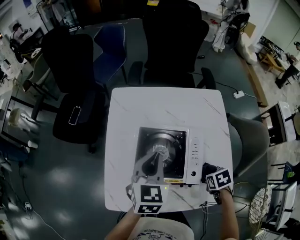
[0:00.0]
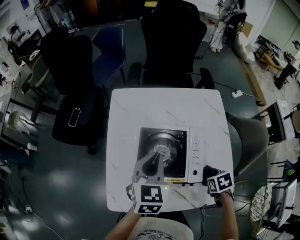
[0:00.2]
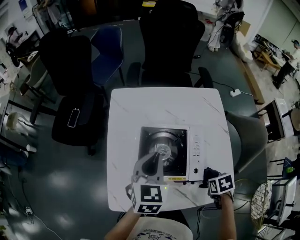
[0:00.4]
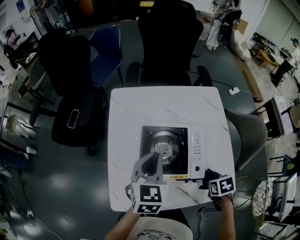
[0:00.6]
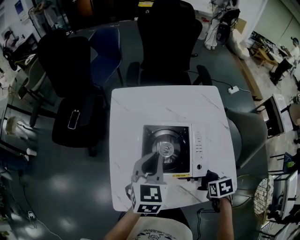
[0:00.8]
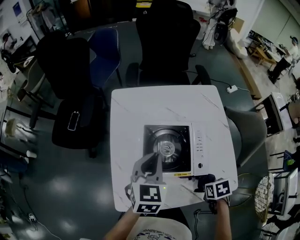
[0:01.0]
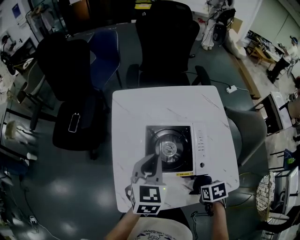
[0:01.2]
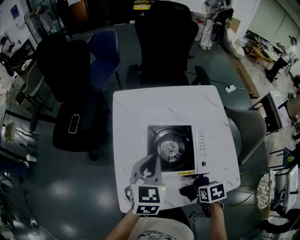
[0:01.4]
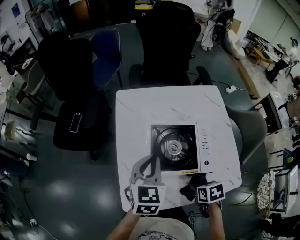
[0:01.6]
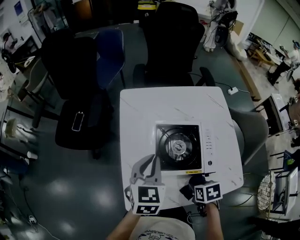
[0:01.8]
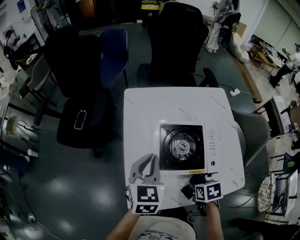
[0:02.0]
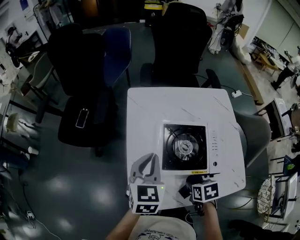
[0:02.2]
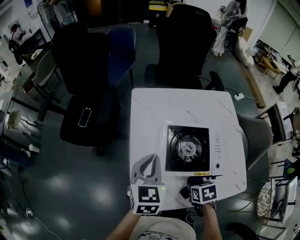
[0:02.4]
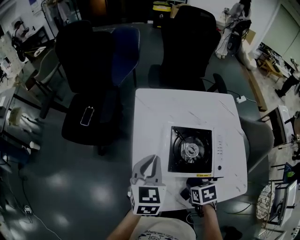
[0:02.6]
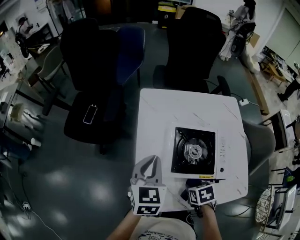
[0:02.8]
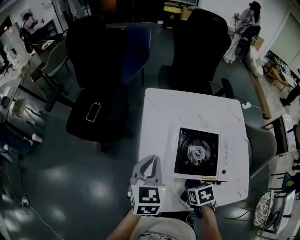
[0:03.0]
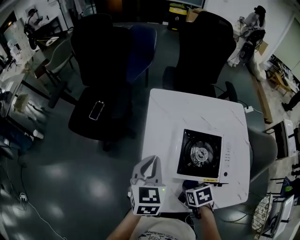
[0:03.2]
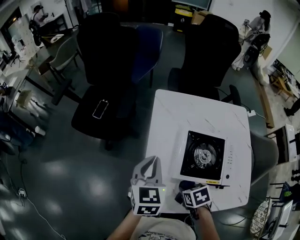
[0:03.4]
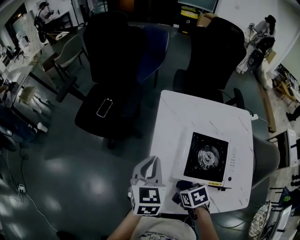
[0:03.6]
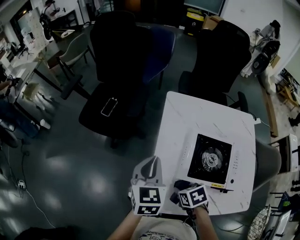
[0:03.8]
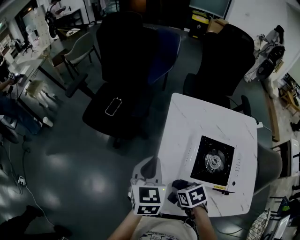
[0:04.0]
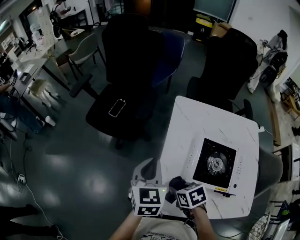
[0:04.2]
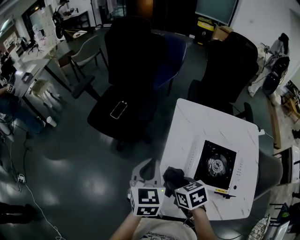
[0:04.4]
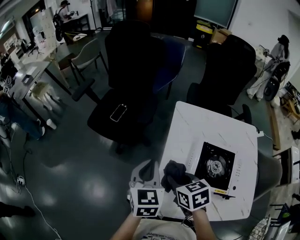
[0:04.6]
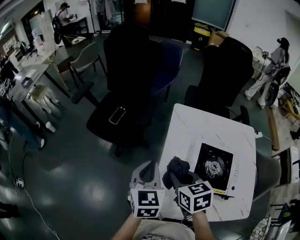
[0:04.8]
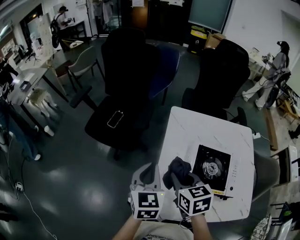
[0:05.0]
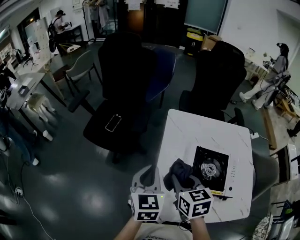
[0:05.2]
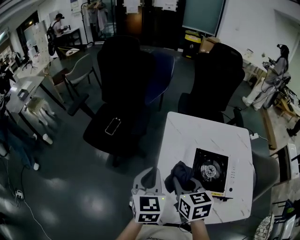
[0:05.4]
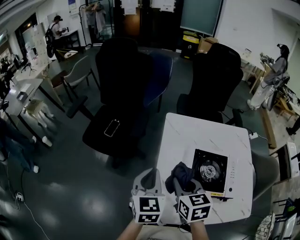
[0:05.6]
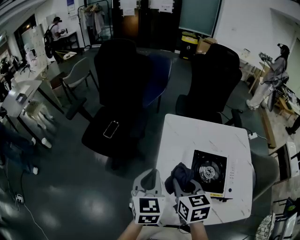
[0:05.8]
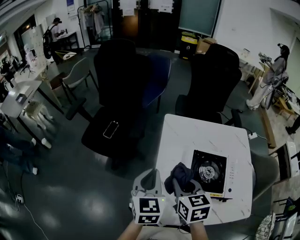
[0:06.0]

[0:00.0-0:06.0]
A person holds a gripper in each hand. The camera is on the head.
0.0 to 1.6 s: The left gripper ends up some 10 cm from where it was; the right gripper ends up some 15 cm from where it was.
1.6 to 3.0 s: The left gripper heads to the left, covering about 10 cm. The right gripper moves to the left and forward, roughly 10 cm.
3.0 to 4.4 s: The right gripper goes some 20 cm to the left, forward and upward, and swivels about 30 degrees. The left gripper travels to the left by some 10 cm.
4.4 to 6.0 s: The right gripper heads upward, covering roughly 10 cm, and rotates some 30 degrees.

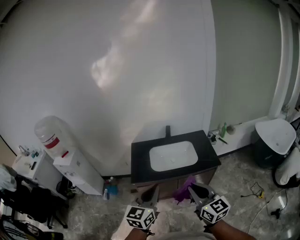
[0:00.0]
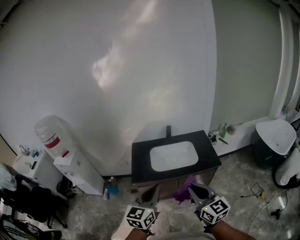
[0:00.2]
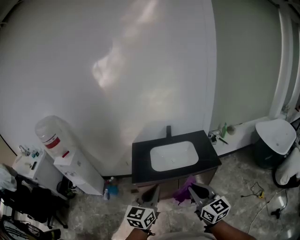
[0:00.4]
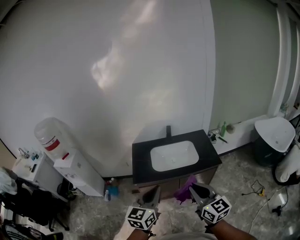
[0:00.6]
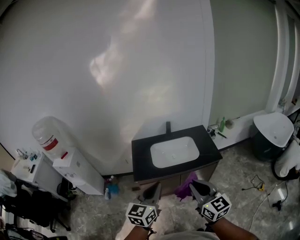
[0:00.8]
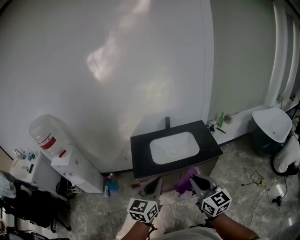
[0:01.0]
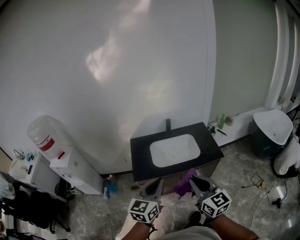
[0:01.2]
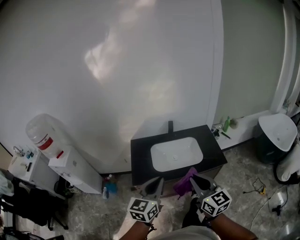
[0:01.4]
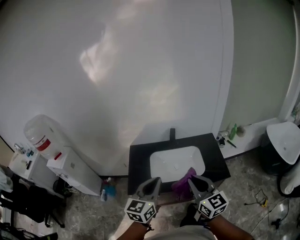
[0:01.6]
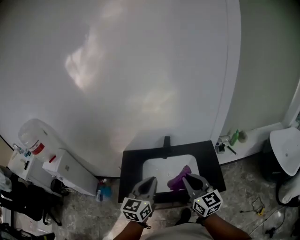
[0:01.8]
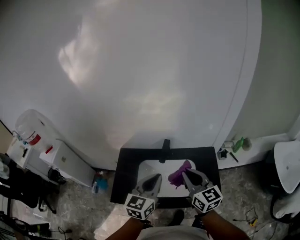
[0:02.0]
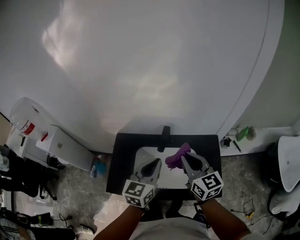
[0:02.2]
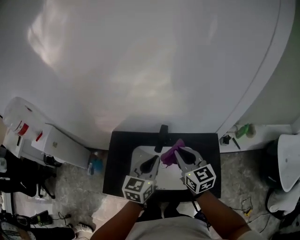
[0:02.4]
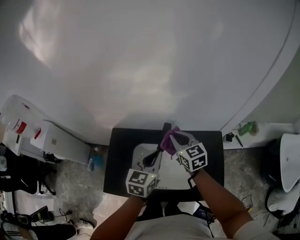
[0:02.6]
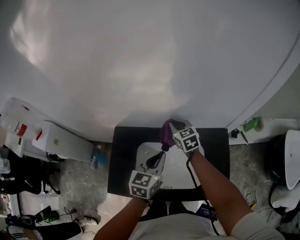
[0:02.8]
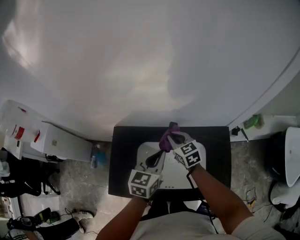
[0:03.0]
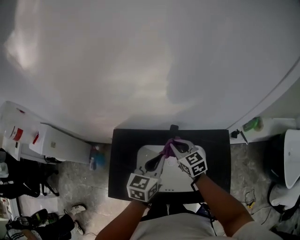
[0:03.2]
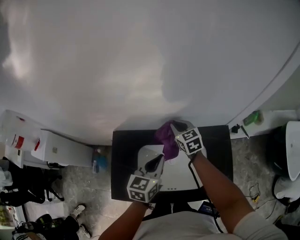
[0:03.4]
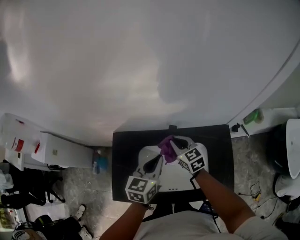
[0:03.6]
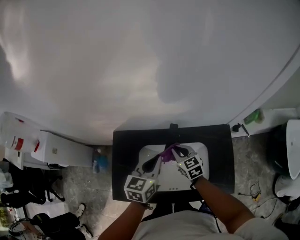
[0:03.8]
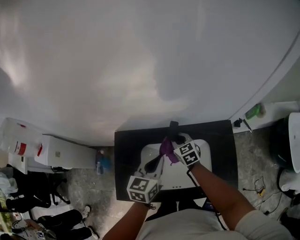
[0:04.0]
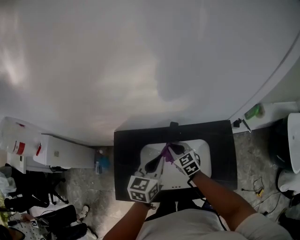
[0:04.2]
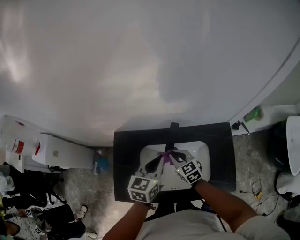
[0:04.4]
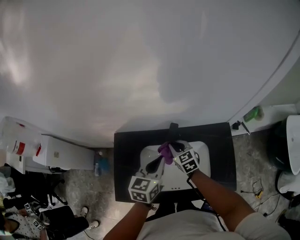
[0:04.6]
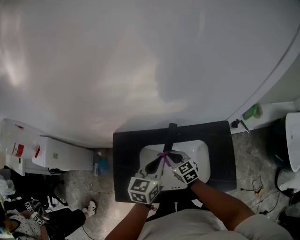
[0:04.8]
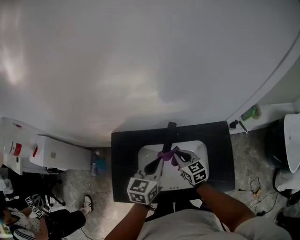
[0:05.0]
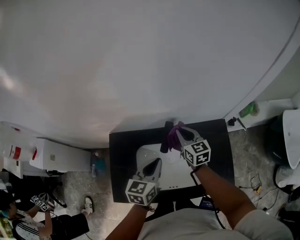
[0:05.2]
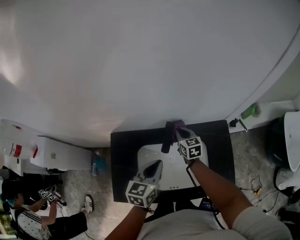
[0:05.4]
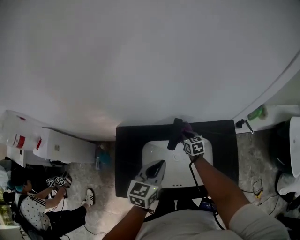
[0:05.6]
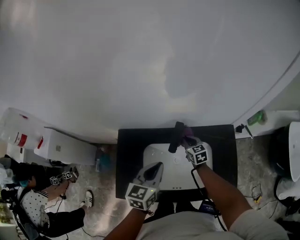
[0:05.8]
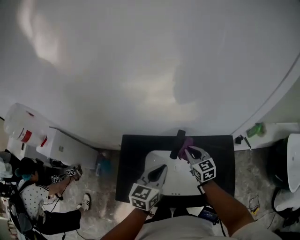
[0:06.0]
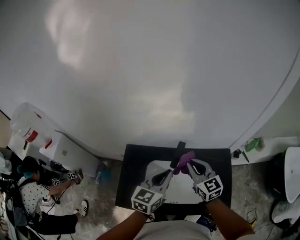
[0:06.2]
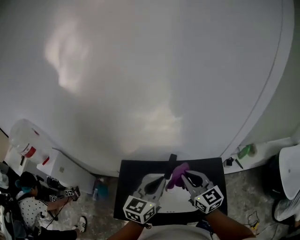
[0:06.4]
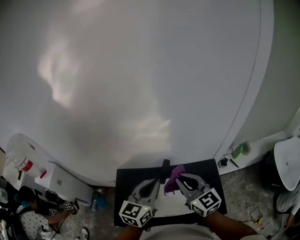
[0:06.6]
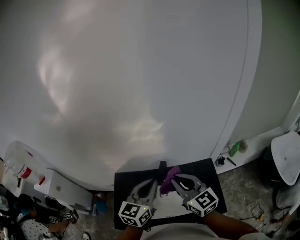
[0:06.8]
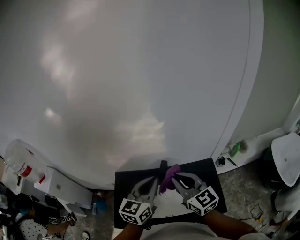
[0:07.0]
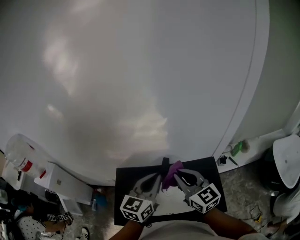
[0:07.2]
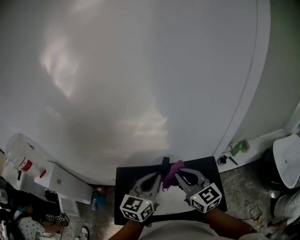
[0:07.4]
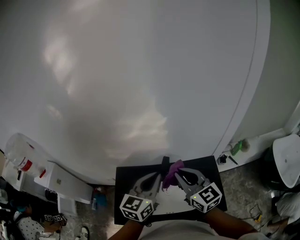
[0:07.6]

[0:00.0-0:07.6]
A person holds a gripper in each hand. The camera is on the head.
0.0 to 1.6 s: The two grippers go about 20 cm forward.
1.6 to 3.0 s: Both grippers travel together forward and downward, roughly 50 cm. The left gripper rotates approximately 20 degrees; the right gripper turns by approximately 30 degrees.
3.0 to 4.6 s: The right gripper goes forward and backward, roughly 15 cm each way, reversing 4 times.
4.6 to 6.0 s: The right gripper goes up and down, some 15 cm each way, reversing 2 times, while the left gripper shifts by roughly 5 cm.
6.0 to 7.6 s: The right gripper travels upward and backward by about 30 cm, while the left gripper is displaced upward by approximately 15 cm.

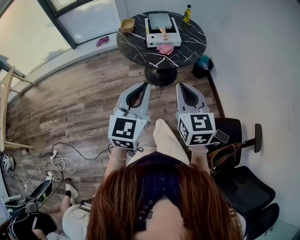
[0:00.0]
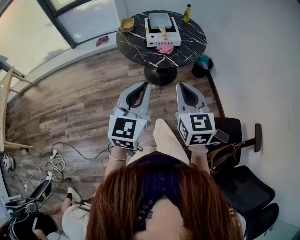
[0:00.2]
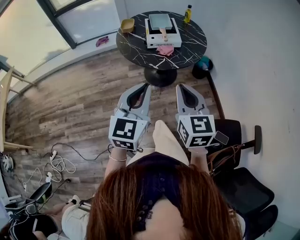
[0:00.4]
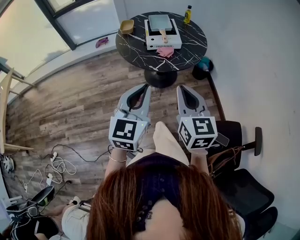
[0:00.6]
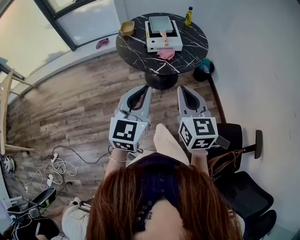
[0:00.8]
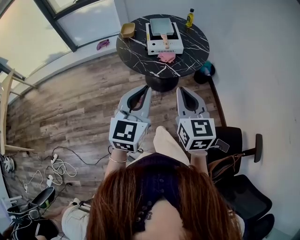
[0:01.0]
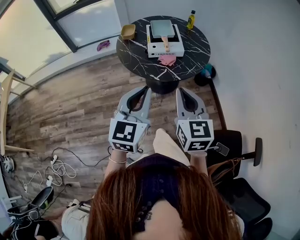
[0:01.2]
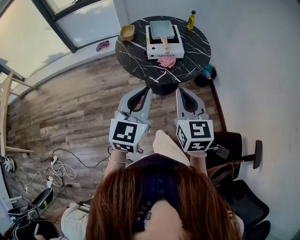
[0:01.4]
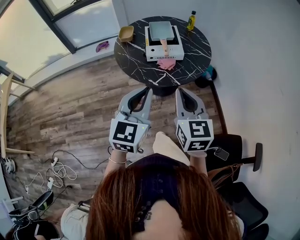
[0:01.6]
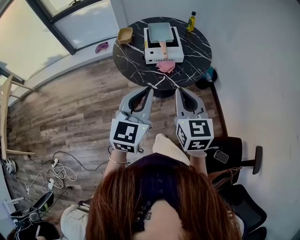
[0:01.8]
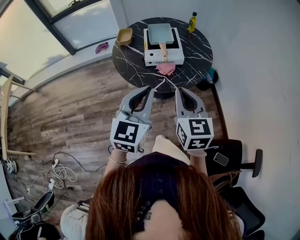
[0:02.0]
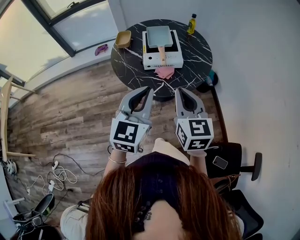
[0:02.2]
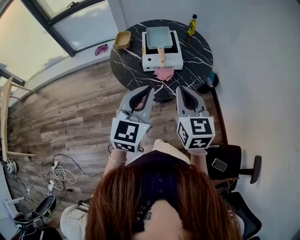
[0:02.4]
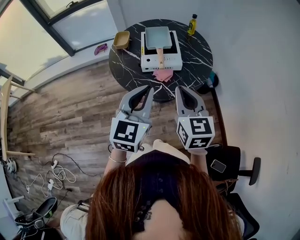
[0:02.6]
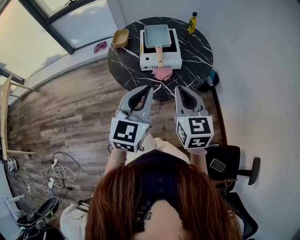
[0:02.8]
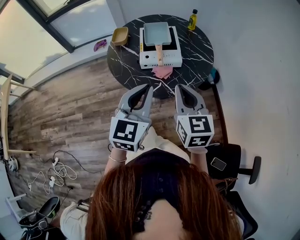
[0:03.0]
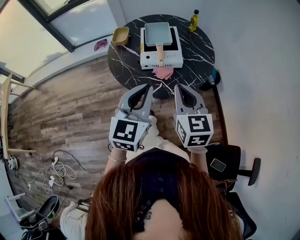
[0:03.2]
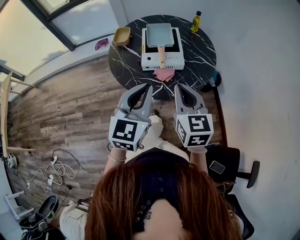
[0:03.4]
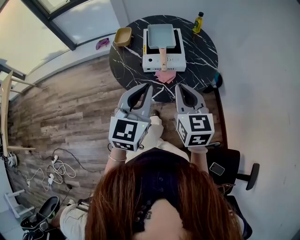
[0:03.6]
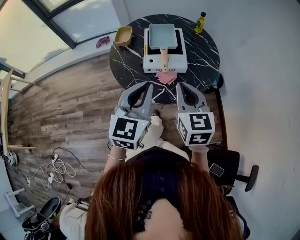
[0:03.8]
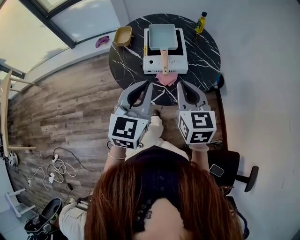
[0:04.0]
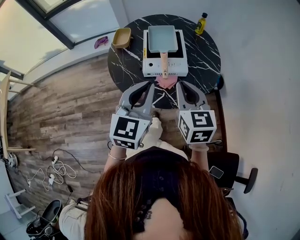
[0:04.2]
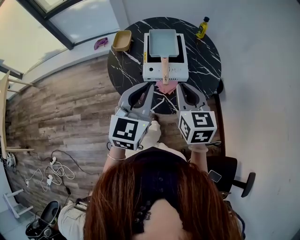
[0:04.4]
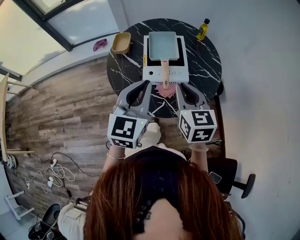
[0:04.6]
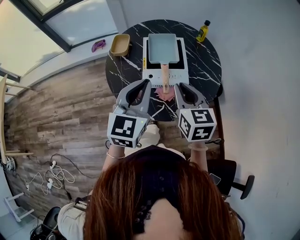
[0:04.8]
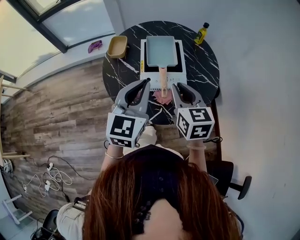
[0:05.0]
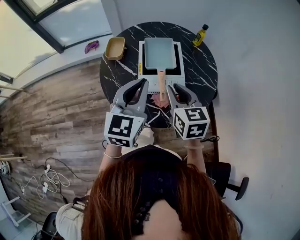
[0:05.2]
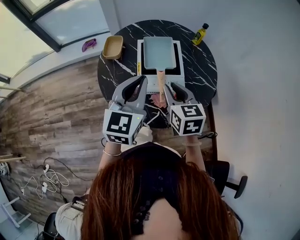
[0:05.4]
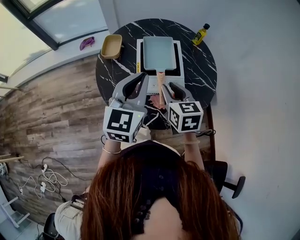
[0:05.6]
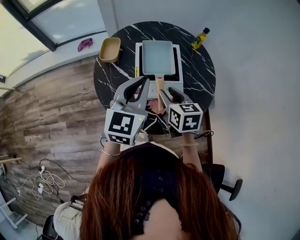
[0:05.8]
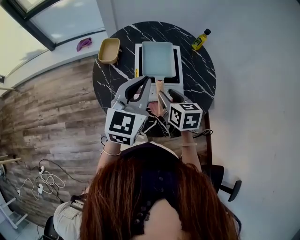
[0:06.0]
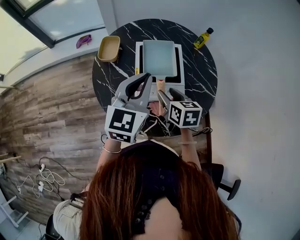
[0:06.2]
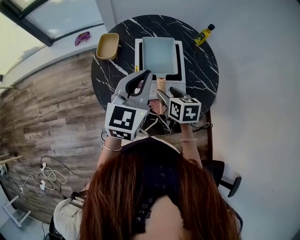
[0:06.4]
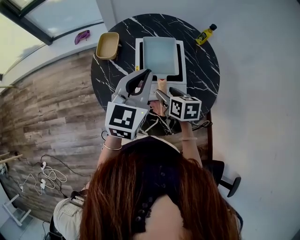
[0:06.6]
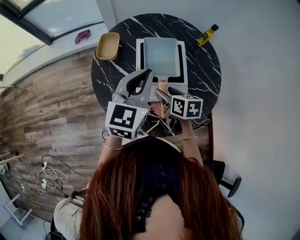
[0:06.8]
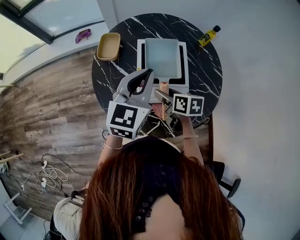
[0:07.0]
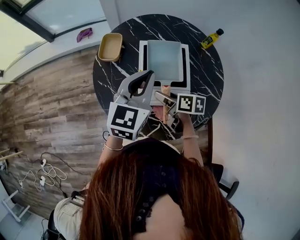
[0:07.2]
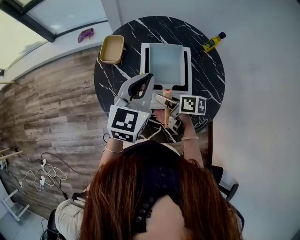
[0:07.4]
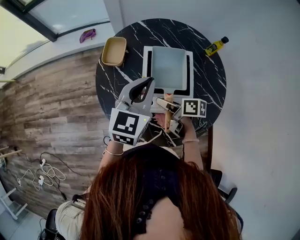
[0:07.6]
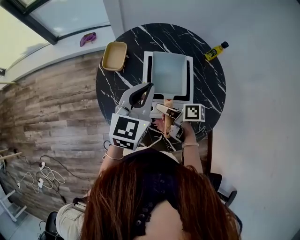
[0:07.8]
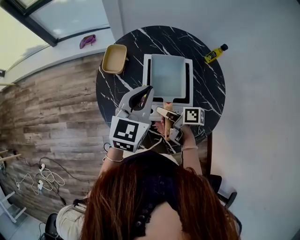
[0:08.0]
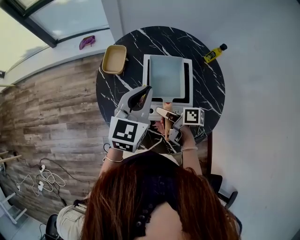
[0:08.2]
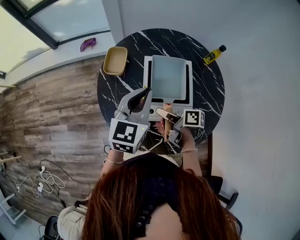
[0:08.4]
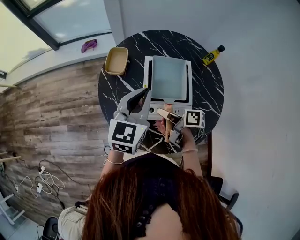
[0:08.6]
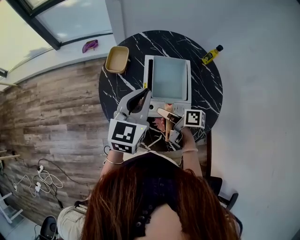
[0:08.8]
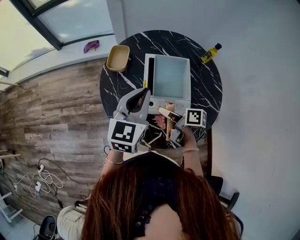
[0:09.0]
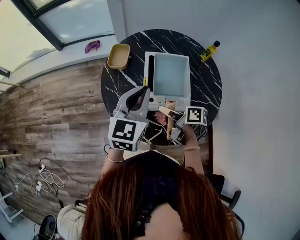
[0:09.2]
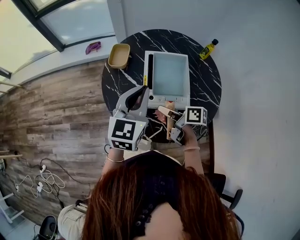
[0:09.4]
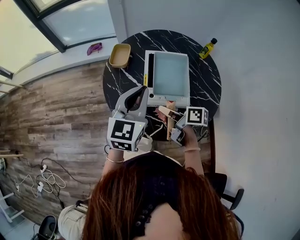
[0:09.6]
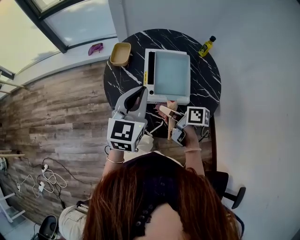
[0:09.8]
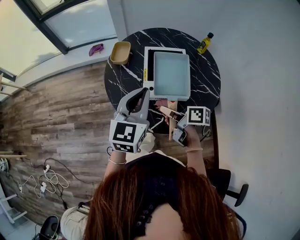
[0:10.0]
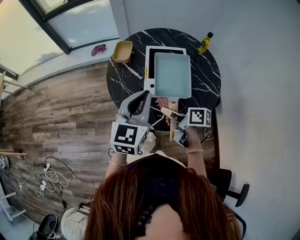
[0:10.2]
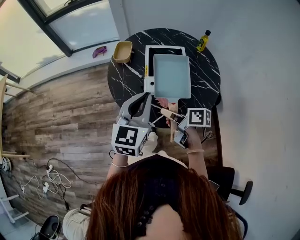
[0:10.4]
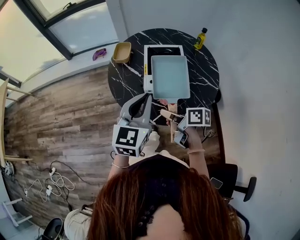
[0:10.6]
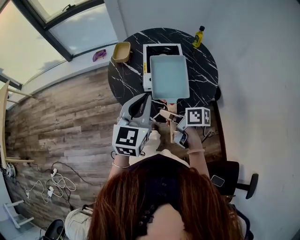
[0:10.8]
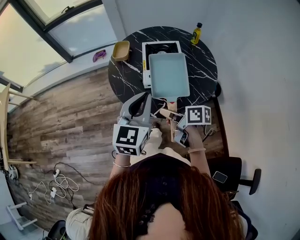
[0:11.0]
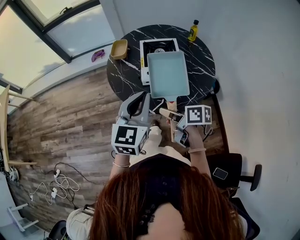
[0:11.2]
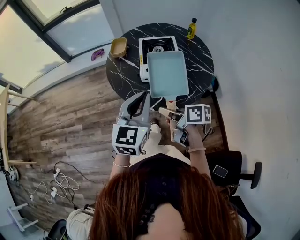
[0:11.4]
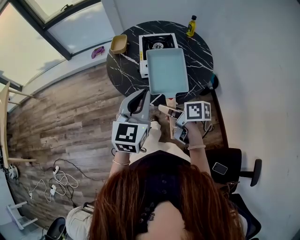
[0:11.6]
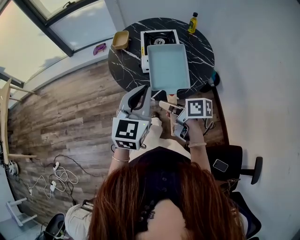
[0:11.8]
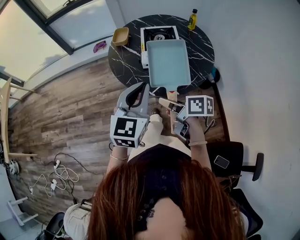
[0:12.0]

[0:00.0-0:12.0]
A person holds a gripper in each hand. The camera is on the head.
0.0 to 1.6 s: Both grippers travel together forward, approximately 15 cm.
1.6 to 3.0 s: The grippers both shift forward by roughly 15 cm.
3.0 to 4.4 s: The grippers both shift forward by some 15 cm.
4.4 to 6.0 s: The right gripper travels forward and downward by about 20 cm, changes its angle by about 20 degrees, and opens. Meanwhile the left gripper shifts approximately 15 cm forward.
6.0 to 7.6 s: The left gripper travels forward by approximately 10 cm; the right gripper moves downward and forward, about 10 cm, and turns by approximately 50 degrees.
7.6 to 9.0 s: The right gripper changes place by roughly 5 cm, and closes; the left gripper shifts some 5 cm backward.
9.0 to 10.4 s: Both grippers travel together backward, some 15 cm.
10.4 to 12.0 s: The two grippers go roughly 15 cm backward.
